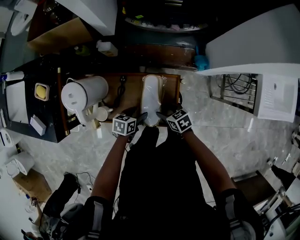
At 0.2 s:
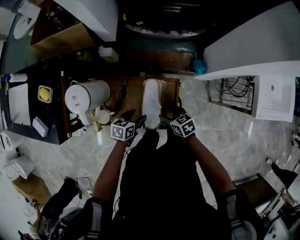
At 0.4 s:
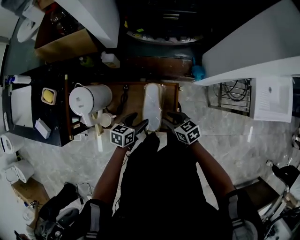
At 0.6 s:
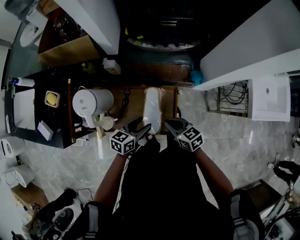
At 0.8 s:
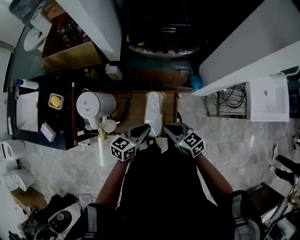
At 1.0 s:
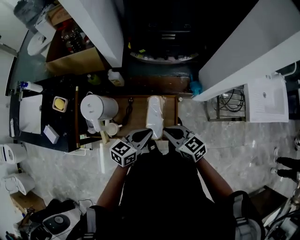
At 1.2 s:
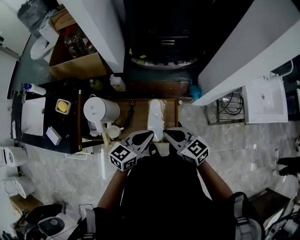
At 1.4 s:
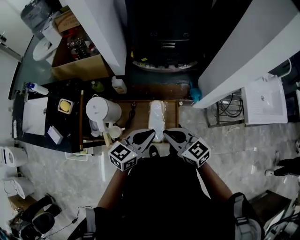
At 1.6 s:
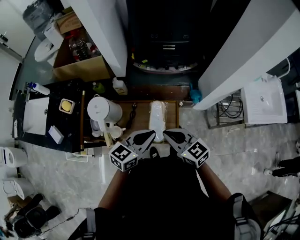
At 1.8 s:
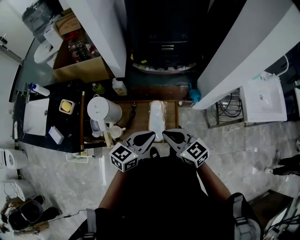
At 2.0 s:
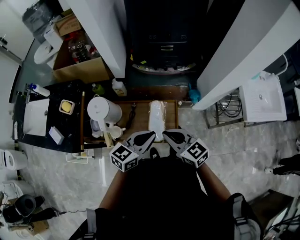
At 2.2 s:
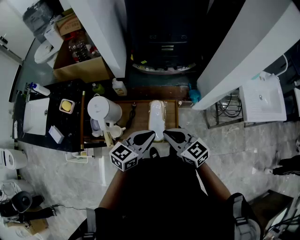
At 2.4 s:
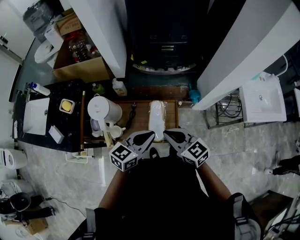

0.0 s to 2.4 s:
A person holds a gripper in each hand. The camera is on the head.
0.0 to 1.2 s: The grippers both shift upward by approximately 25 cm. The left gripper points its fingers roughly 30 degrees further upward, and closes, while the right gripper changes its angle by roughly 30 degrees, and closes up.
1.2 to 2.4 s: There are only small adjustments of the grippers.

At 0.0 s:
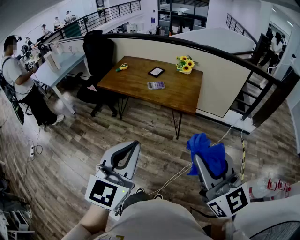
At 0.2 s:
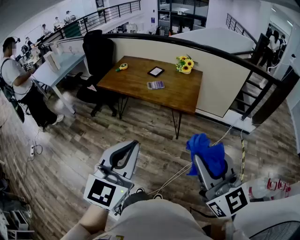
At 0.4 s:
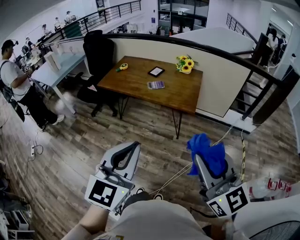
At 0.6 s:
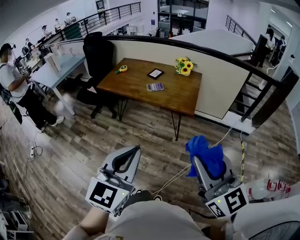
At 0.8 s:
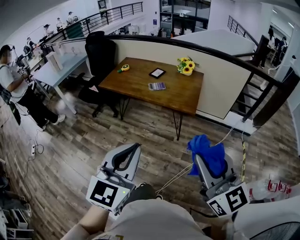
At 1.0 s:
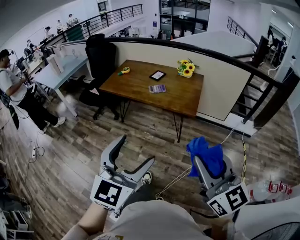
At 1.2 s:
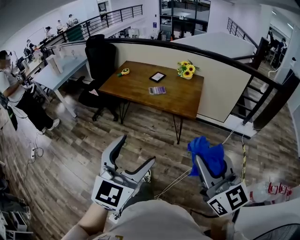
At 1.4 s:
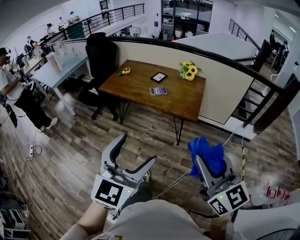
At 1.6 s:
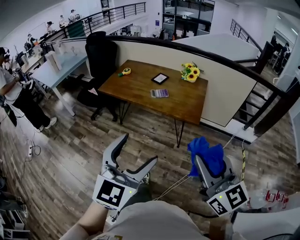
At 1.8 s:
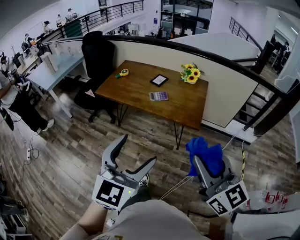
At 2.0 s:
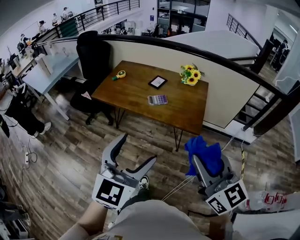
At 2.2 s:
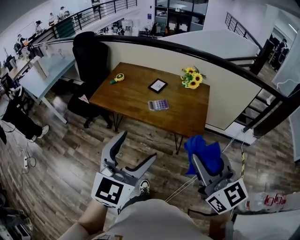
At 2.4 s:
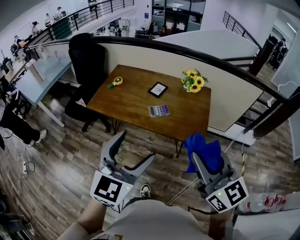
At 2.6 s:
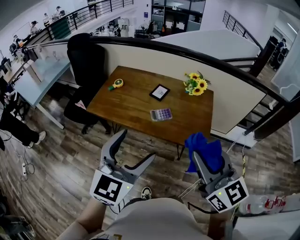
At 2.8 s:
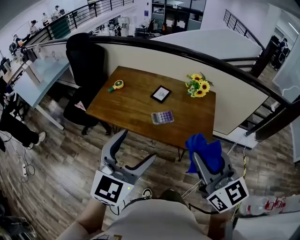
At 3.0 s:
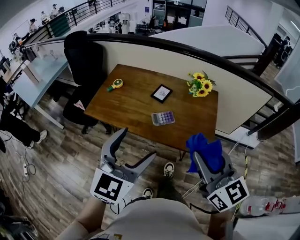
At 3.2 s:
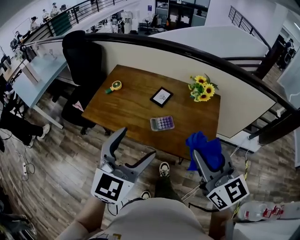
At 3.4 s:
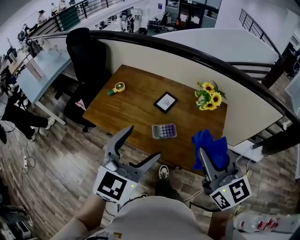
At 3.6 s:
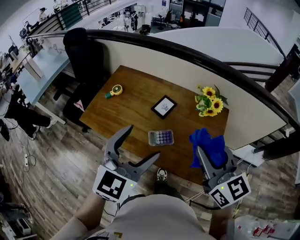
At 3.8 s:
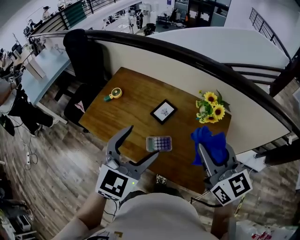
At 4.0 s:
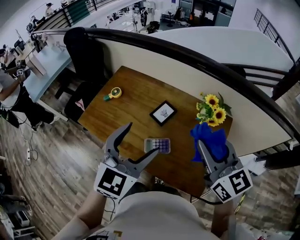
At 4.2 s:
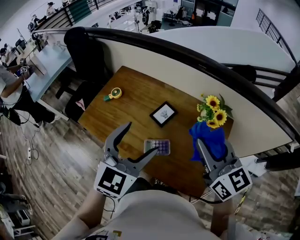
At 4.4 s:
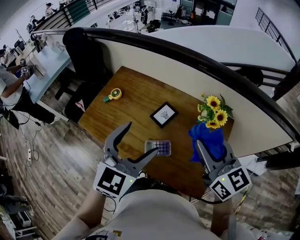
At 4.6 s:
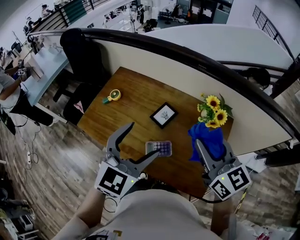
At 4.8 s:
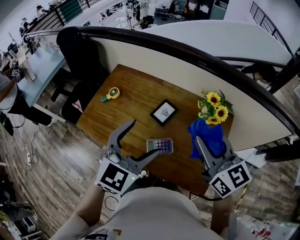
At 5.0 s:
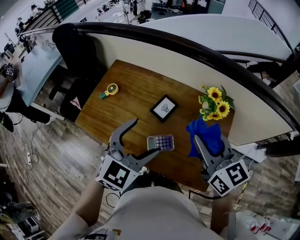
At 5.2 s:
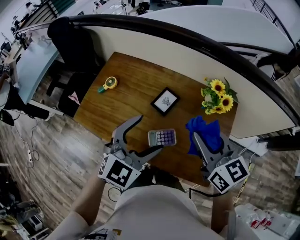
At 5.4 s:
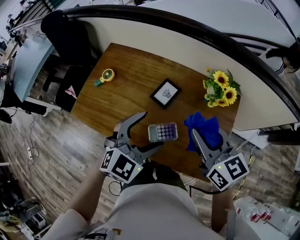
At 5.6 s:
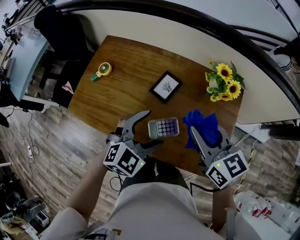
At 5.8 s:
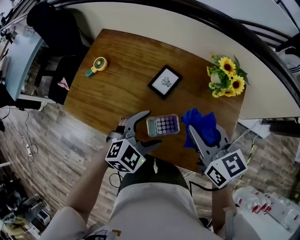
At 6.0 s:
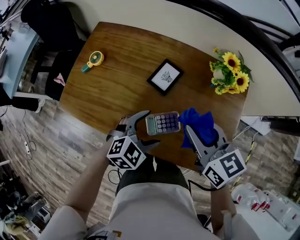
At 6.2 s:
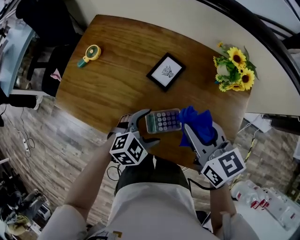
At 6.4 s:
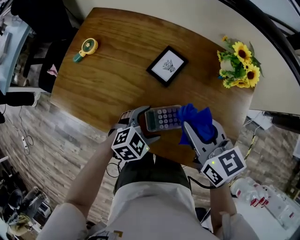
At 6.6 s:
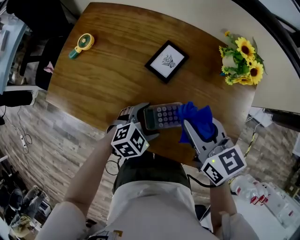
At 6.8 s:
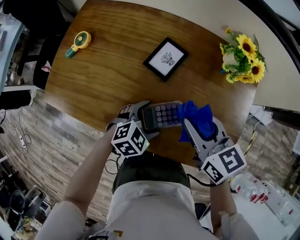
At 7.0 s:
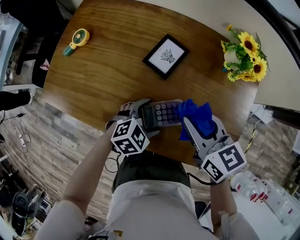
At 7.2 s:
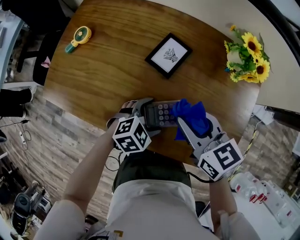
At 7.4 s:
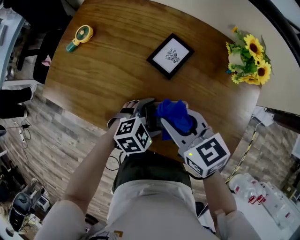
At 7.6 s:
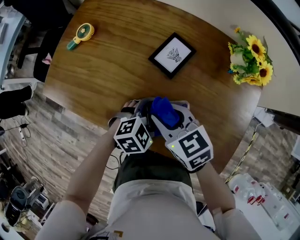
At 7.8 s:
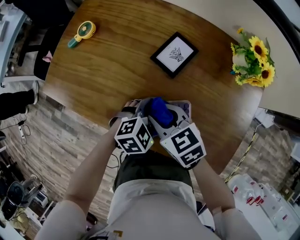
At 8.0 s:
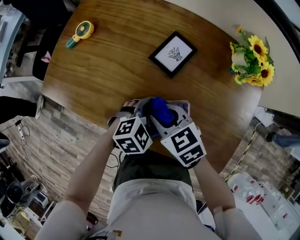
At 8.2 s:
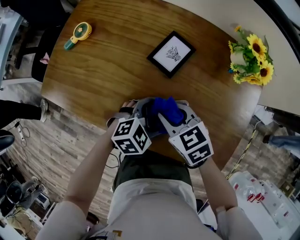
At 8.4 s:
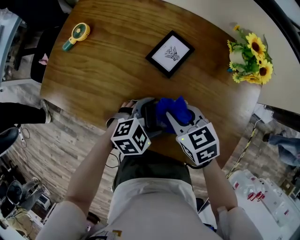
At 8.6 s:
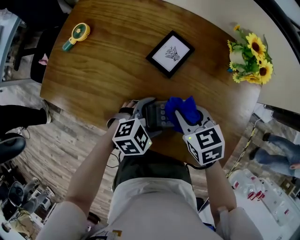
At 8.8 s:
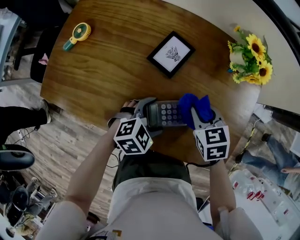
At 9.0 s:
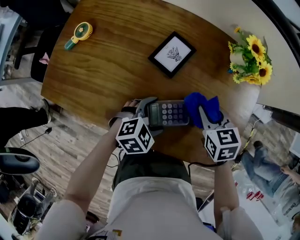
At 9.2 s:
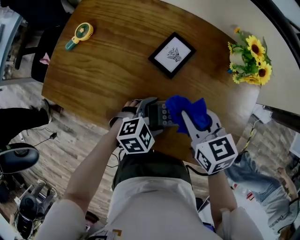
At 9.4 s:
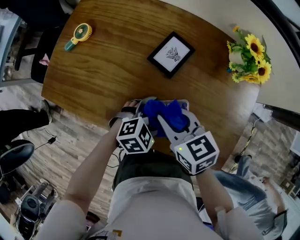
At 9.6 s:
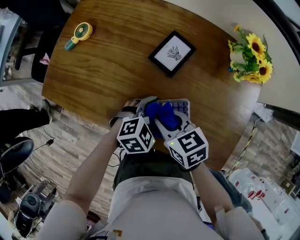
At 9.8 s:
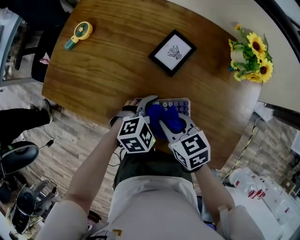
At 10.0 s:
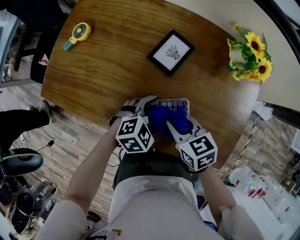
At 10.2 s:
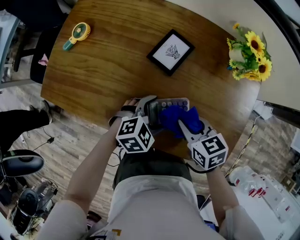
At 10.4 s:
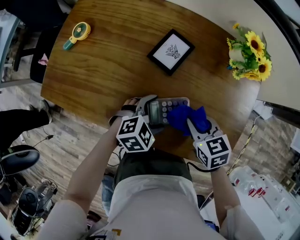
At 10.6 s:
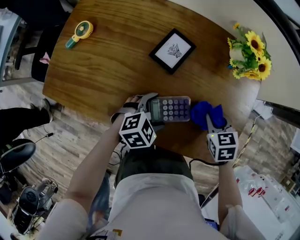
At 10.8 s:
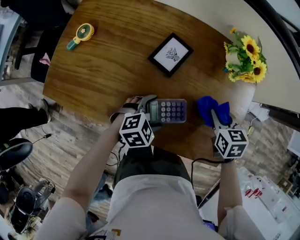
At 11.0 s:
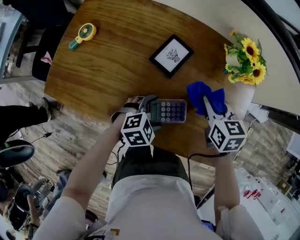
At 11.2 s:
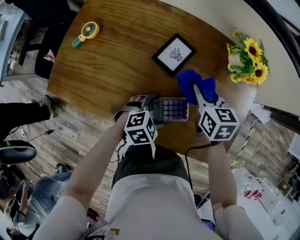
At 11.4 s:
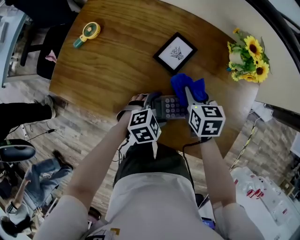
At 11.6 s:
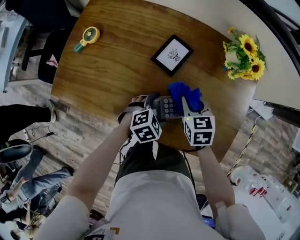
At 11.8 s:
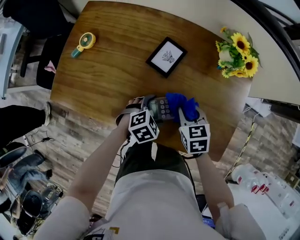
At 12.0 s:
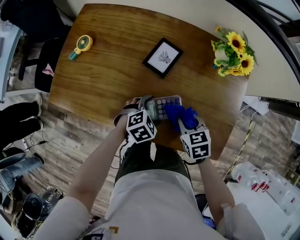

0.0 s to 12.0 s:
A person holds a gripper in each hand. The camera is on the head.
0.0 to 1.6 s: Both grippers travel together forward, approximately 10 cm. The left gripper opens its fingers.
1.6 to 3.0 s: The two grippers go approximately 40 cm forward.
3.0 to 4.4 s: The grippers both shift forward by about 30 cm.
4.4 to 6.0 s: The left gripper goes roughly 30 cm downward, and swivels some 40 degrees. Meanwhile the right gripper goes about 20 cm downward.
6.0 to 7.6 s: The two grippers go some 15 cm downward. The right gripper turns by some 20 degrees.
7.6 to 9.0 s: The right gripper changes place by approximately 15 cm, and rotates about 30 degrees.
10.4 to 12.0 s: The right gripper moves left and right over about 15 cm, changing direction 2 times.

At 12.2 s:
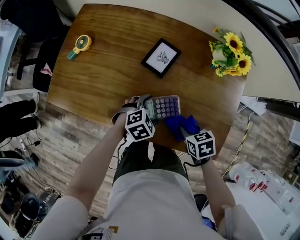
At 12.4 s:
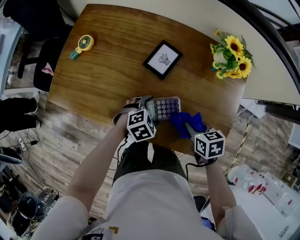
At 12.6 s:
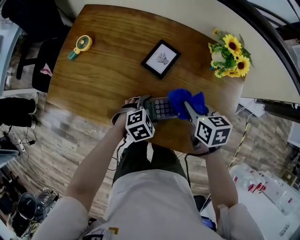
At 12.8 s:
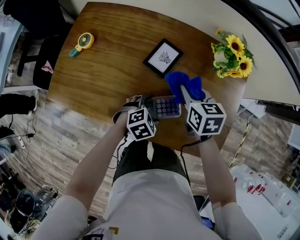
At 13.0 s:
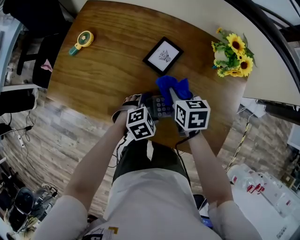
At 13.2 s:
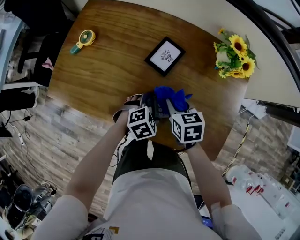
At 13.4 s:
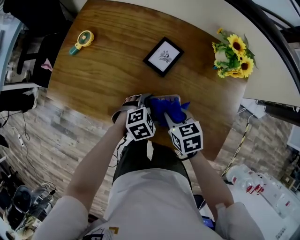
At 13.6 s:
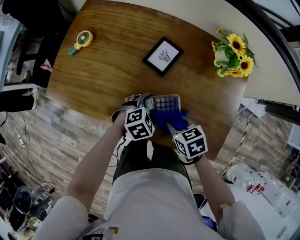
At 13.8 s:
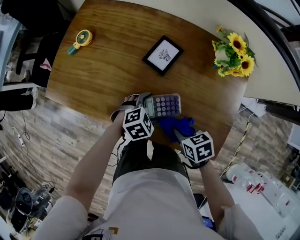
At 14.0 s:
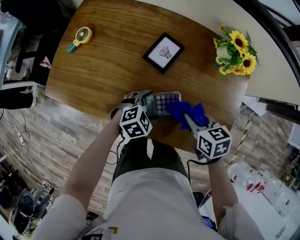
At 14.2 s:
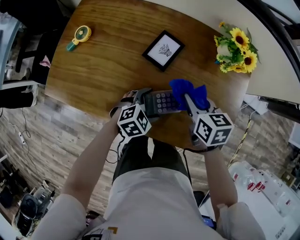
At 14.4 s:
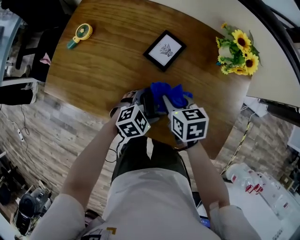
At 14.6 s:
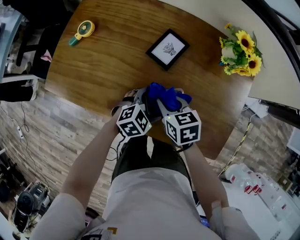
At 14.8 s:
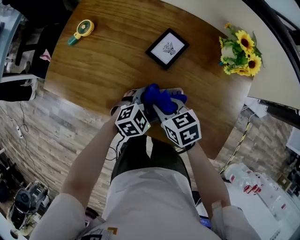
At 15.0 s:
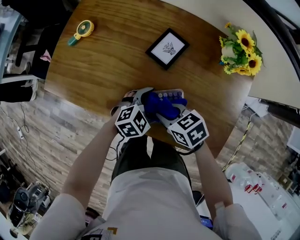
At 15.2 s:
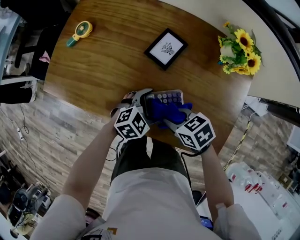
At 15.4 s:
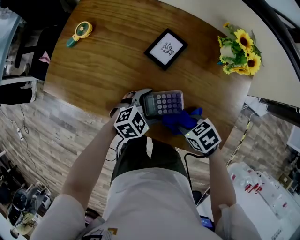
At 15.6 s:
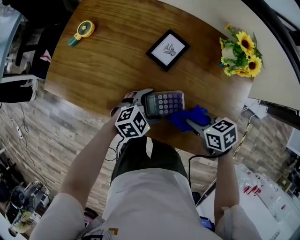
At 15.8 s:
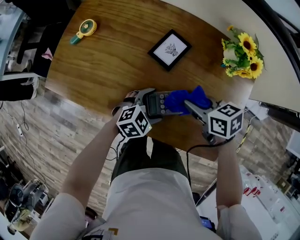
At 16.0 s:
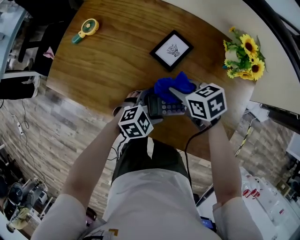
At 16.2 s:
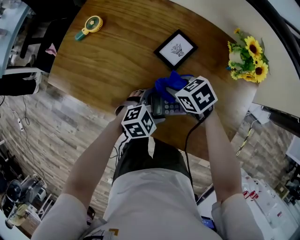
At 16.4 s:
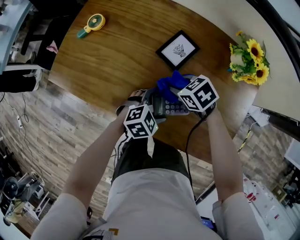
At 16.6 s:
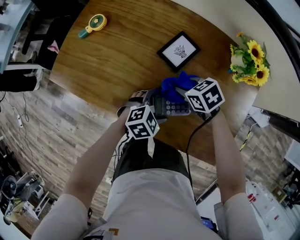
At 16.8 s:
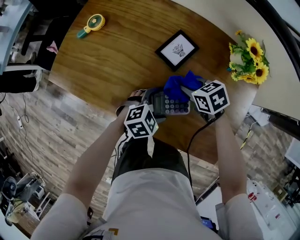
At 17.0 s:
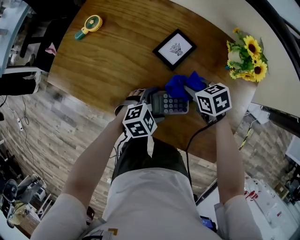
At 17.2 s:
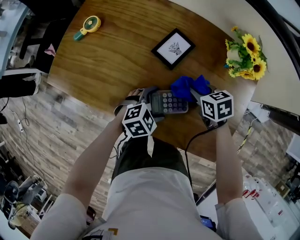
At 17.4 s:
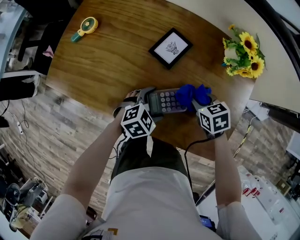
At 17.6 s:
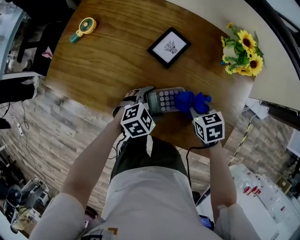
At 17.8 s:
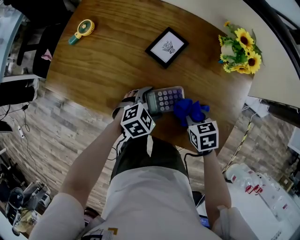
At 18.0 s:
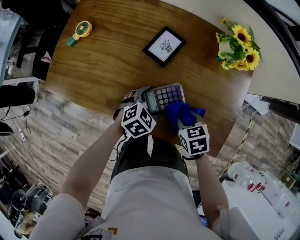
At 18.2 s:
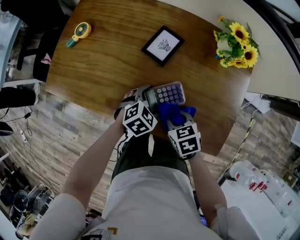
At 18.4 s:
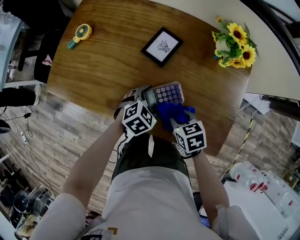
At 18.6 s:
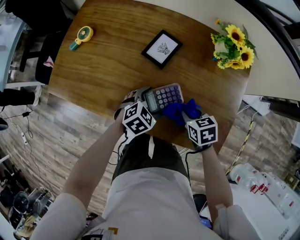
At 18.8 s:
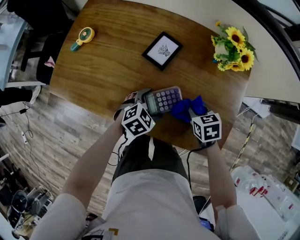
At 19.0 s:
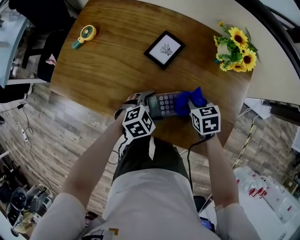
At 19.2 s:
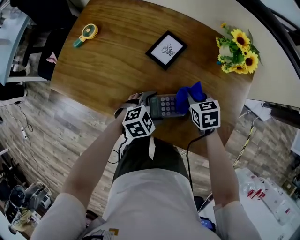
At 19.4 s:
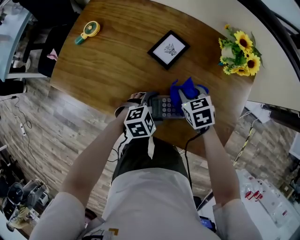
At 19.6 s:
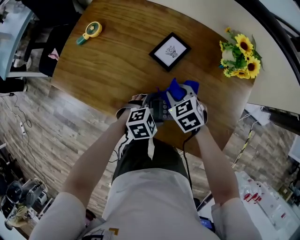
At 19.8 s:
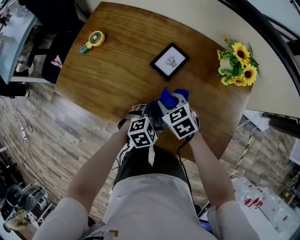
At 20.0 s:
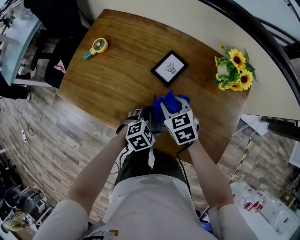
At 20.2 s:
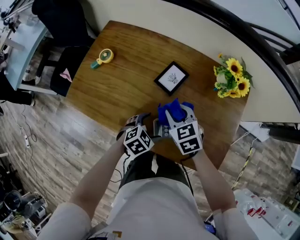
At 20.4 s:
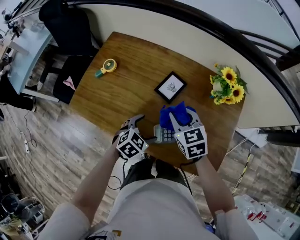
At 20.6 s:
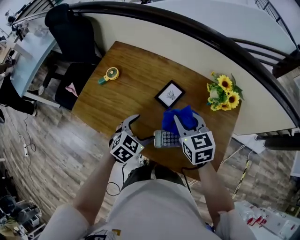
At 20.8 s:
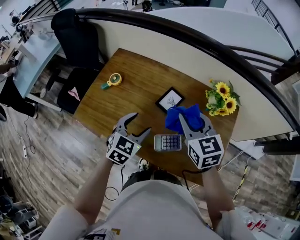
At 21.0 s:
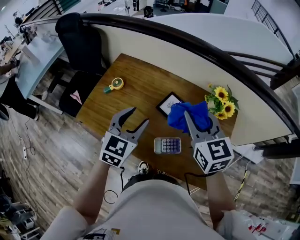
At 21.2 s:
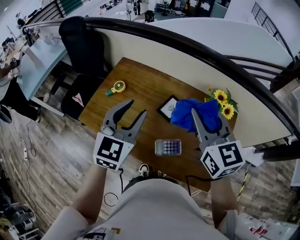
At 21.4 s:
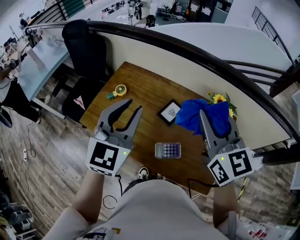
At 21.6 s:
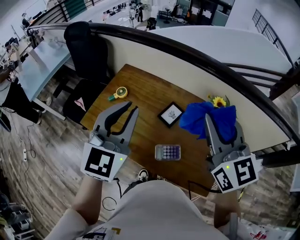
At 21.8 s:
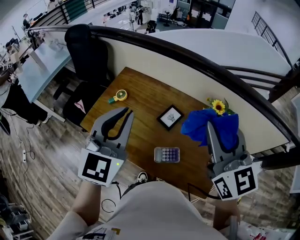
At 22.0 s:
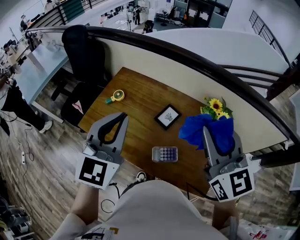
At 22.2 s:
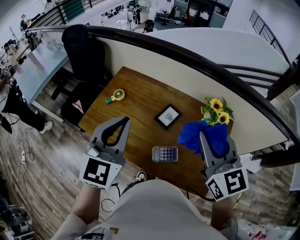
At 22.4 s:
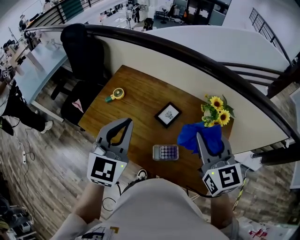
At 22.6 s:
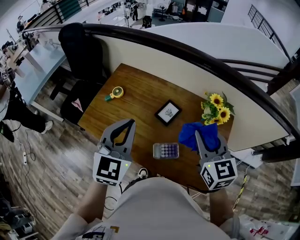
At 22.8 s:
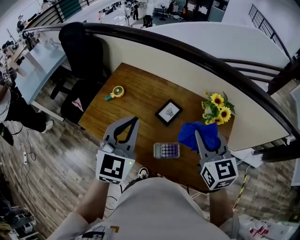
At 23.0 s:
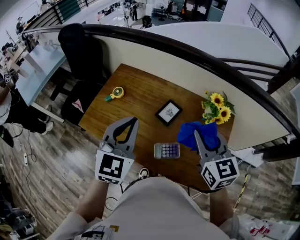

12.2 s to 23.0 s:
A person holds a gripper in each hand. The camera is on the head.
12.2 to 13.8 s: The right gripper goes upward and returns, approximately 10 cm each way.
15.2 to 16.8 s: The right gripper moves about 15 cm.
16.8 to 18.4 s: The right gripper changes place by some 15 cm.
18.4 to 20.0 s: The right gripper is displaced forward, to the left and upward by some 15 cm, and rotates approximately 20 degrees.
20.0 to 21.4 s: Both grippers travel together upward, about 40 cm. The left gripper tilts its fingers about 50 degrees upward, and closes up, while the right gripper tilts its fingers roughly 40 degrees upward.
21.4 to 23.0 s: The right gripper goes roughly 10 cm downward. Meanwhile the left gripper shifts by some 5 cm.
